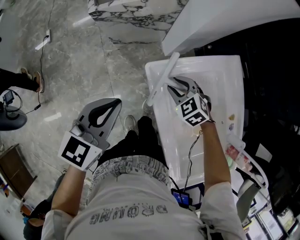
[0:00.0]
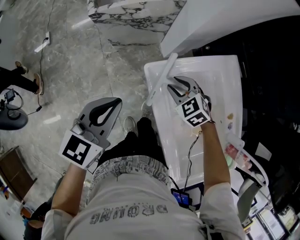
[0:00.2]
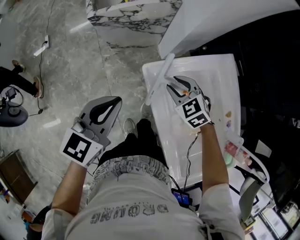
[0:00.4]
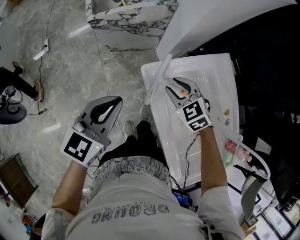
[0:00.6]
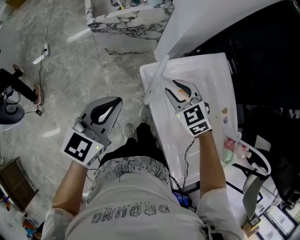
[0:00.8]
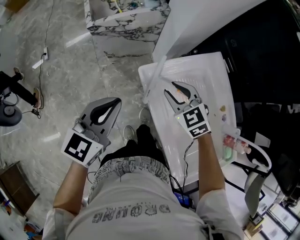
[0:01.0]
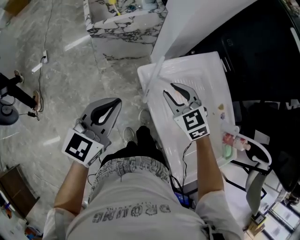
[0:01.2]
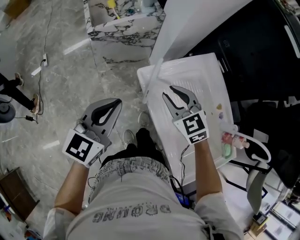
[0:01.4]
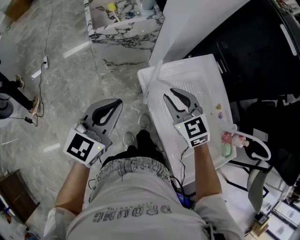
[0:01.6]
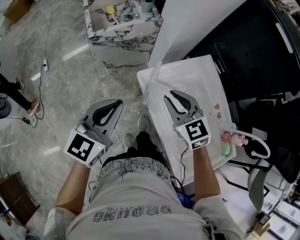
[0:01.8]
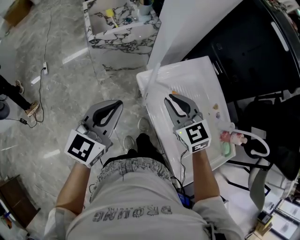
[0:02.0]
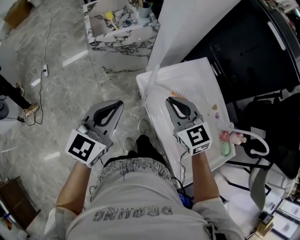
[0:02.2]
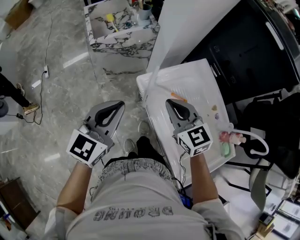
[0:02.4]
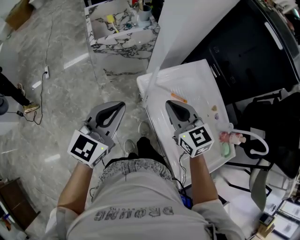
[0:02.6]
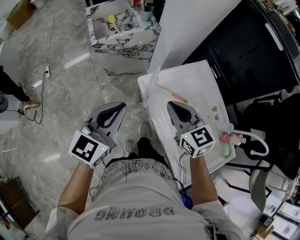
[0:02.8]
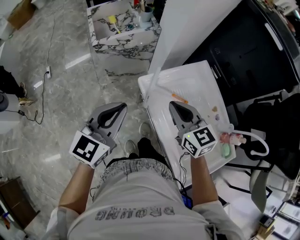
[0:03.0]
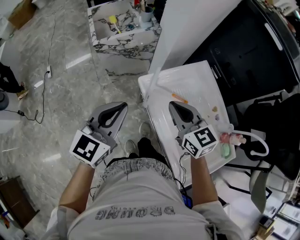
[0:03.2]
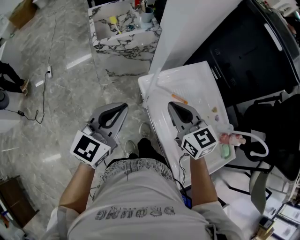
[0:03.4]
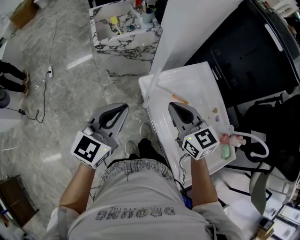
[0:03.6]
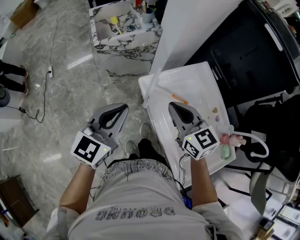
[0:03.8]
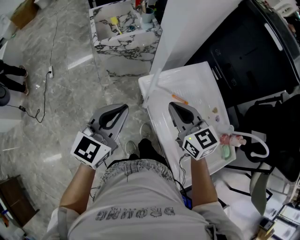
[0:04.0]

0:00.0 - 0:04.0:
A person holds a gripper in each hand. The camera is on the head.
0:00.0 - 0:01.4: The left gripper travels upward by approximately 5 cm, while the right gripper goes about 15 cm upward, and changes its angle by approximately 20 degrees.
0:01.4 - 0:02.6: The right gripper travels upward and backward by roughly 10 cm, and closes.
0:02.6 - 0:04.0: The grippers move only a little.

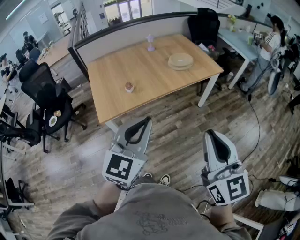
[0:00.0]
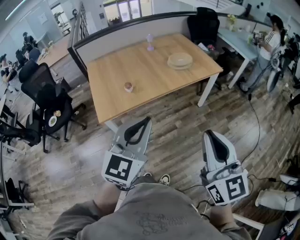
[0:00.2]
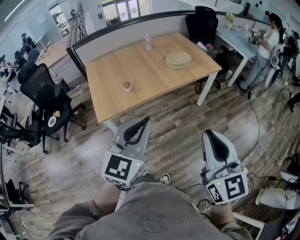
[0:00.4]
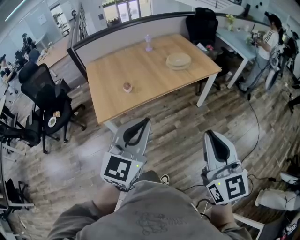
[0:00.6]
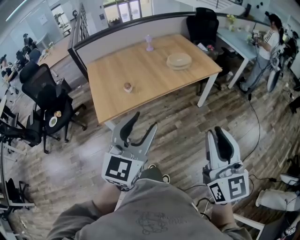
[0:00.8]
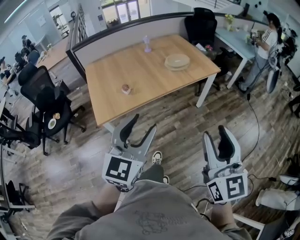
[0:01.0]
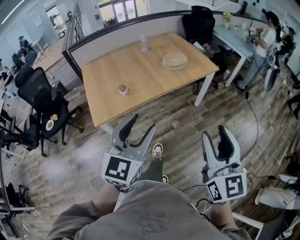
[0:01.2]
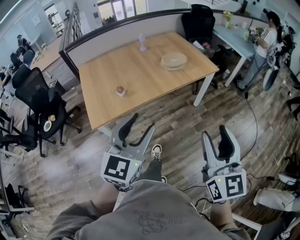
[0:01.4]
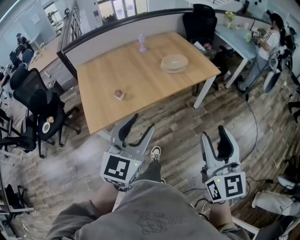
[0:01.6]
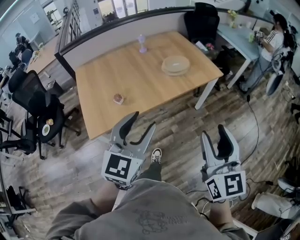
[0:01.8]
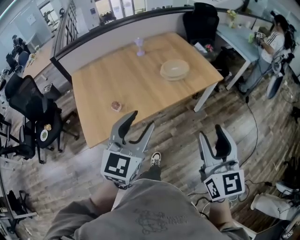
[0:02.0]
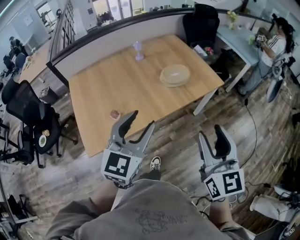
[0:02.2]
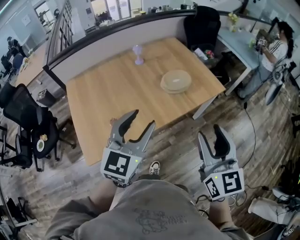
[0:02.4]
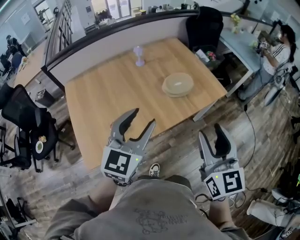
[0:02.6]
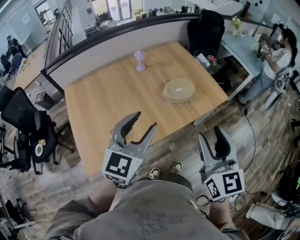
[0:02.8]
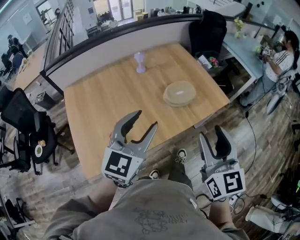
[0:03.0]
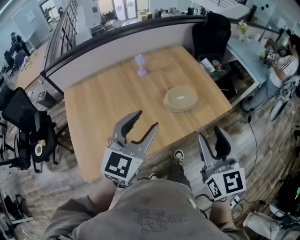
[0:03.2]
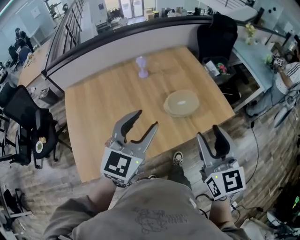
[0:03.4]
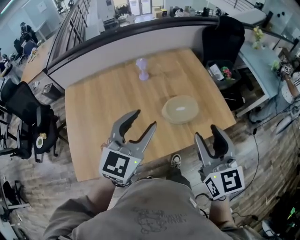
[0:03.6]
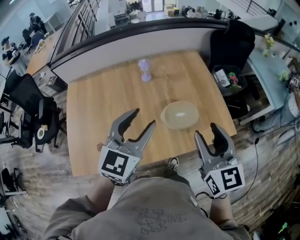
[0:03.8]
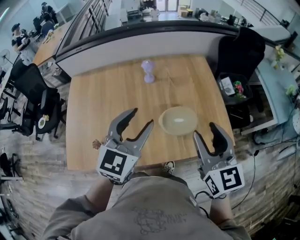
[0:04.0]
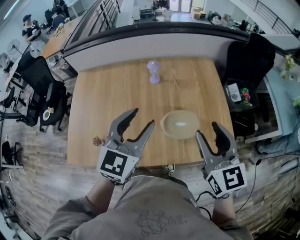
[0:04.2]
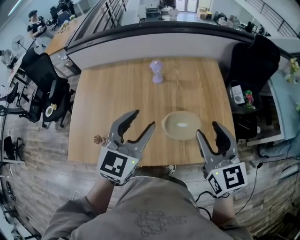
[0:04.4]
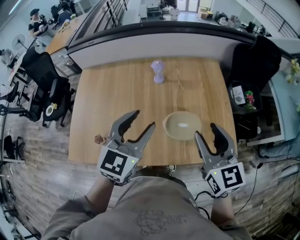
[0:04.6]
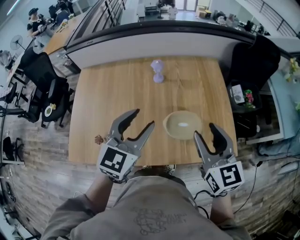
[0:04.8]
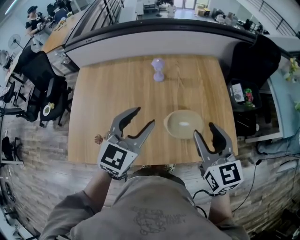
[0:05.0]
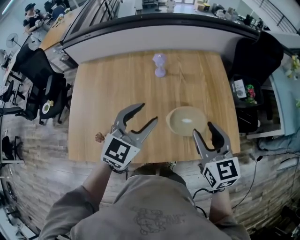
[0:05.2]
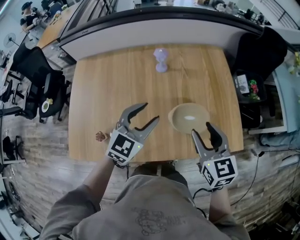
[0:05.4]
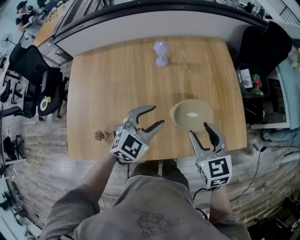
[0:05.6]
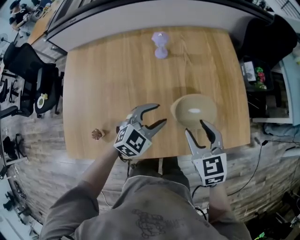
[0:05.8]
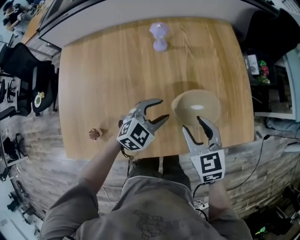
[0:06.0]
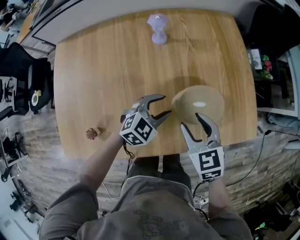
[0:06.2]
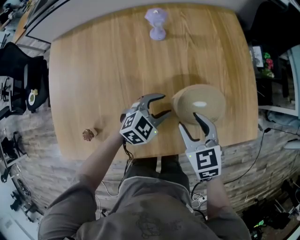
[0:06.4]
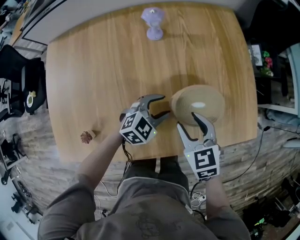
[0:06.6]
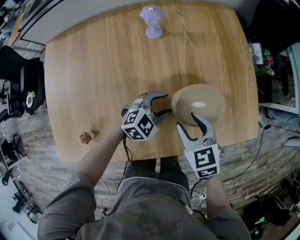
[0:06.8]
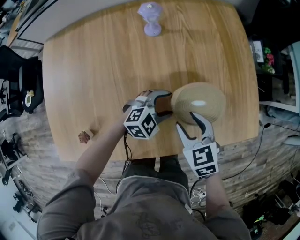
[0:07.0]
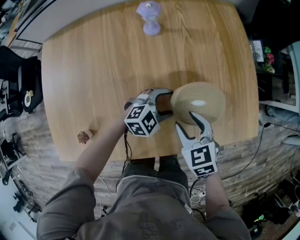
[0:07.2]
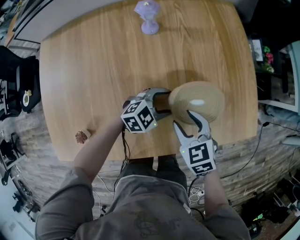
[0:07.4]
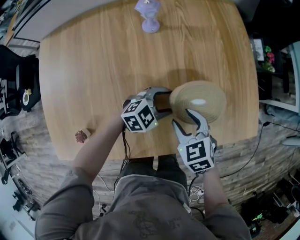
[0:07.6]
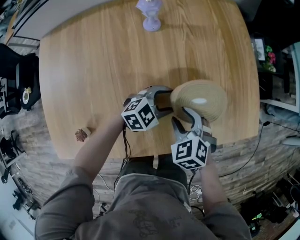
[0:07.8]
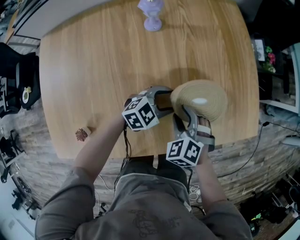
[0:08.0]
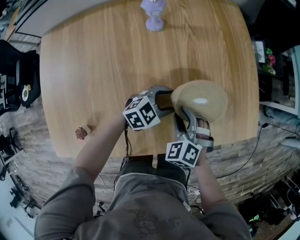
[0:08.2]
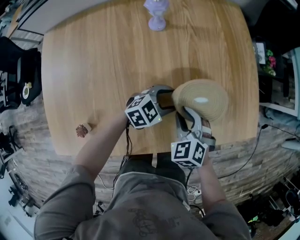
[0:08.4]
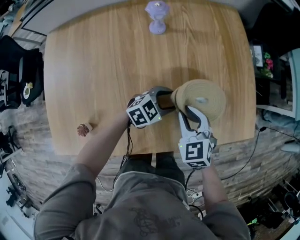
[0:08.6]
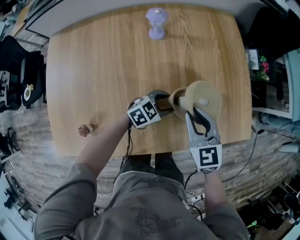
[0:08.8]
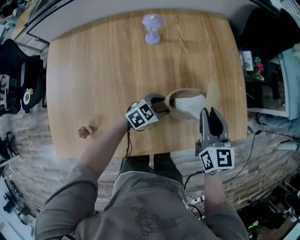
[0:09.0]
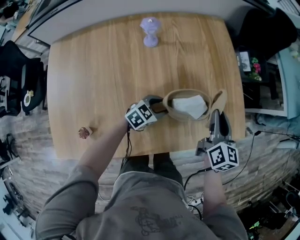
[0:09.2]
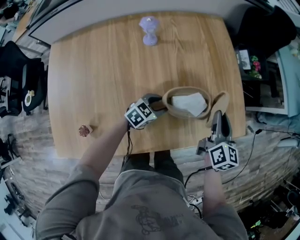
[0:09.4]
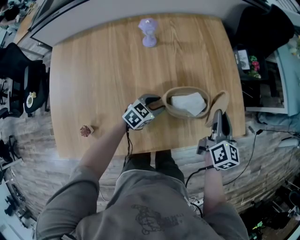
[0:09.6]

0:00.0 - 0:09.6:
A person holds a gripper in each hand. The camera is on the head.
0:00.0 - 0:01.6: Both grippers travel together forward, about 10 cm. The right gripper opens; the left gripper opens up.
0:01.6 - 0:03.2: The grippers both shift forward by some 35 cm.
0:03.2 - 0:04.8: The right gripper shifts by about 25 cm, and changes its angle by approximately 30 degrees, while the left gripper ends up roughly 20 cm from where it was, and changes its angle by approximately 20 degrees.
0:04.8 - 0:06.4: The two grippers go roughly 30 cm downward. The right gripper turns by about 30 degrees; the left gripper changes its angle by some 40 degrees.
0:06.4 - 0:08.0: The right gripper travels downward by approximately 10 cm, and changes its angle by some 30 degrees. The left gripper ends up about 5 cm from where it was.
0:08.0 - 0:09.6: The right gripper moves to the right, upward and forward, approximately 25 cm, rotates around the line of its fingers by roughly 70 degrees, clockwise from behind, and closes.

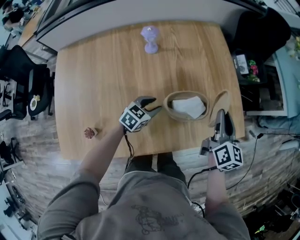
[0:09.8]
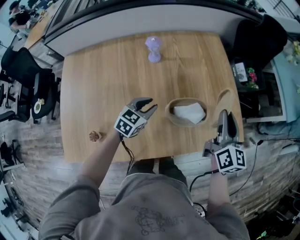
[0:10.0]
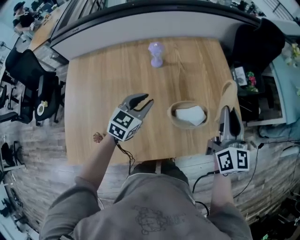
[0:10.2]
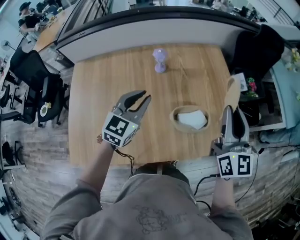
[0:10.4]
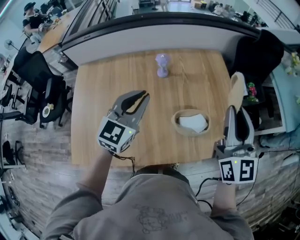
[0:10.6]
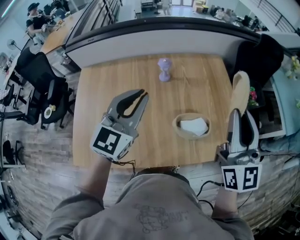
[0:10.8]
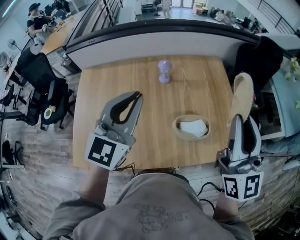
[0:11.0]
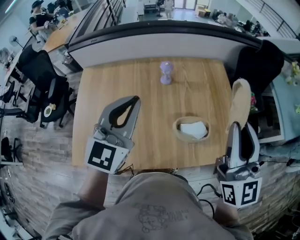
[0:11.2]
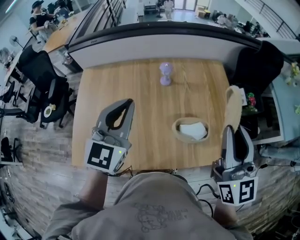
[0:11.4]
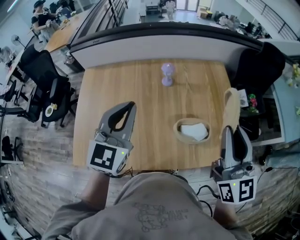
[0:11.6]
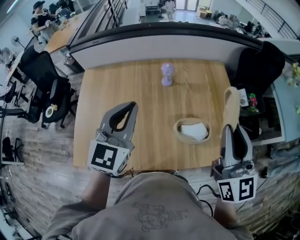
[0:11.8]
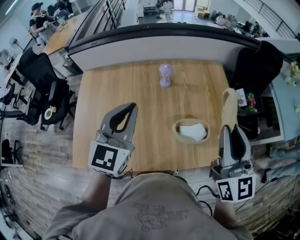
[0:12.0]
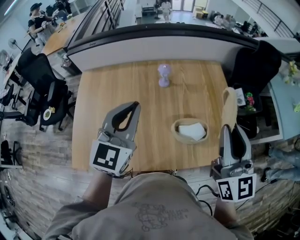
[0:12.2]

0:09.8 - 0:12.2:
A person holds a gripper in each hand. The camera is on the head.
0:09.8 - 0:11.0: Both grippers travel together upward, some 35 cm. The left gripper tilts its fingers approximately 40 degrees upward, and closes, while the right gripper changes its angle by some 40 degrees.
0:11.0 - 0:12.2: The grippers make only small movements.

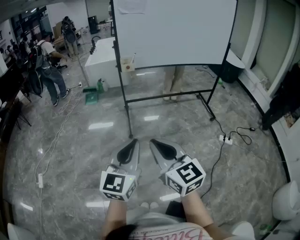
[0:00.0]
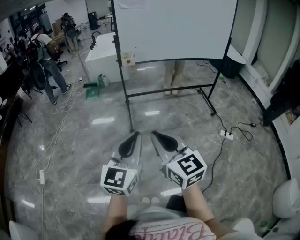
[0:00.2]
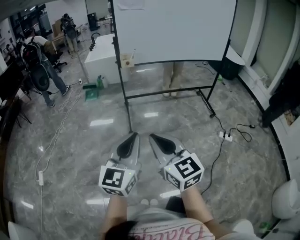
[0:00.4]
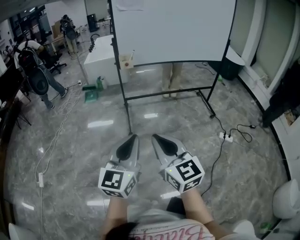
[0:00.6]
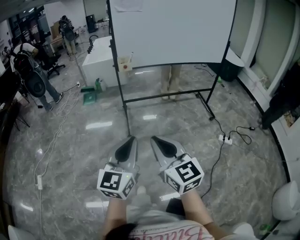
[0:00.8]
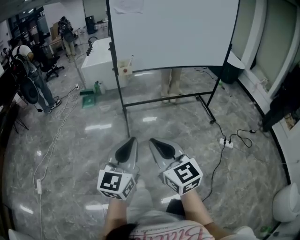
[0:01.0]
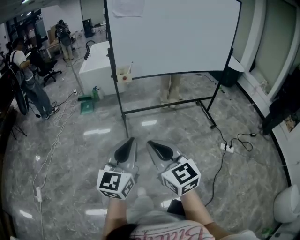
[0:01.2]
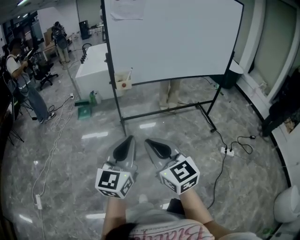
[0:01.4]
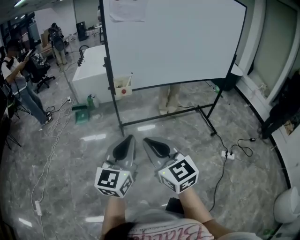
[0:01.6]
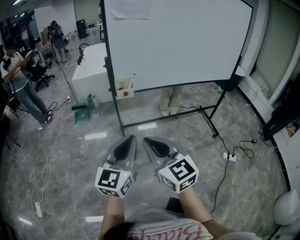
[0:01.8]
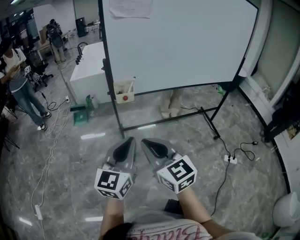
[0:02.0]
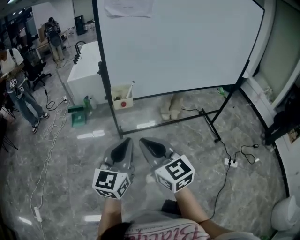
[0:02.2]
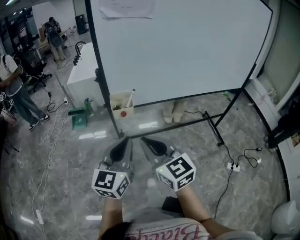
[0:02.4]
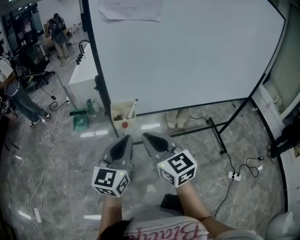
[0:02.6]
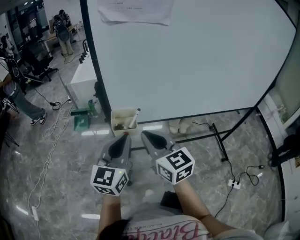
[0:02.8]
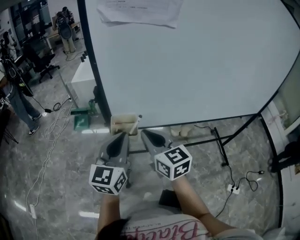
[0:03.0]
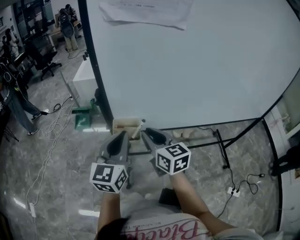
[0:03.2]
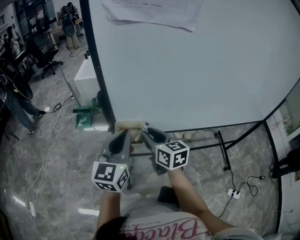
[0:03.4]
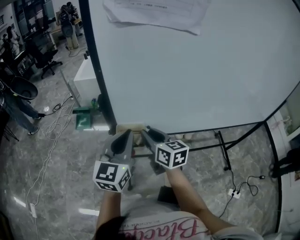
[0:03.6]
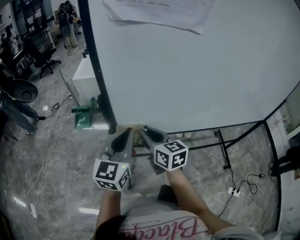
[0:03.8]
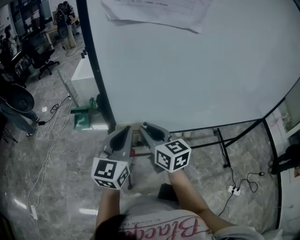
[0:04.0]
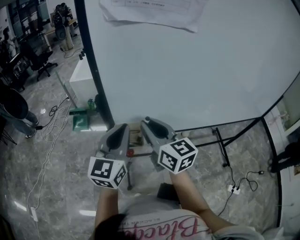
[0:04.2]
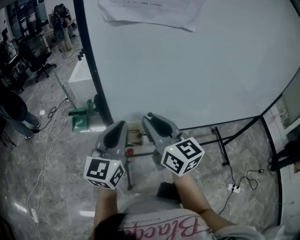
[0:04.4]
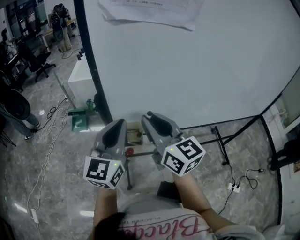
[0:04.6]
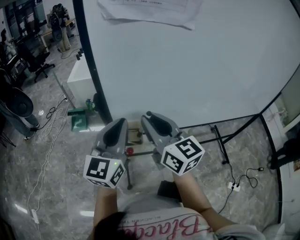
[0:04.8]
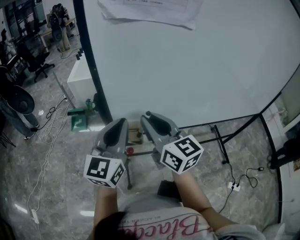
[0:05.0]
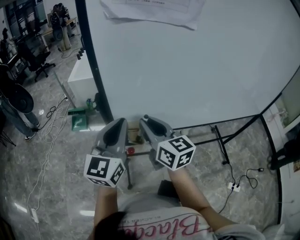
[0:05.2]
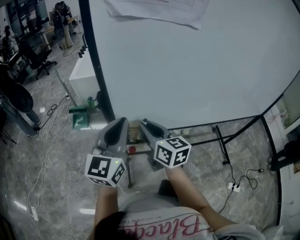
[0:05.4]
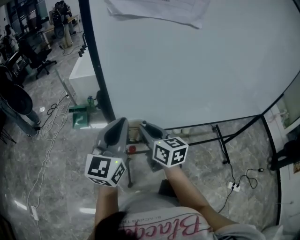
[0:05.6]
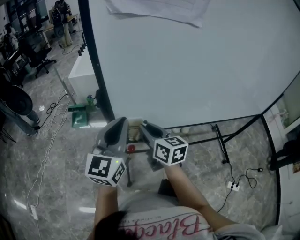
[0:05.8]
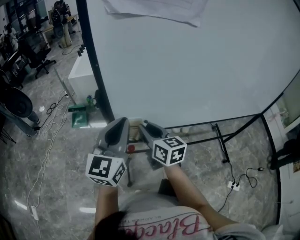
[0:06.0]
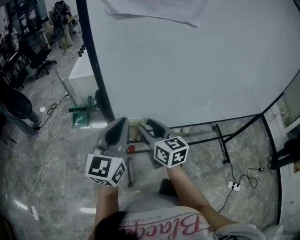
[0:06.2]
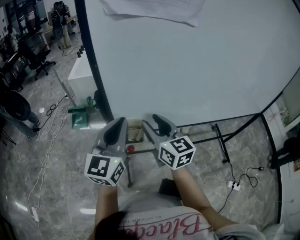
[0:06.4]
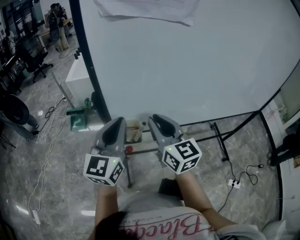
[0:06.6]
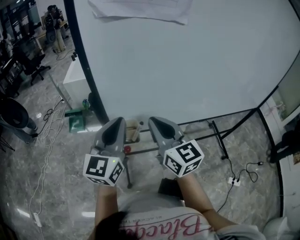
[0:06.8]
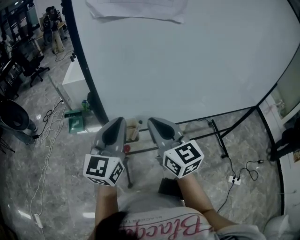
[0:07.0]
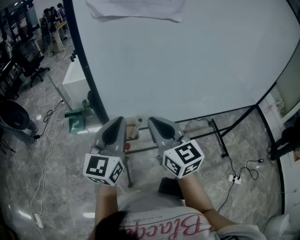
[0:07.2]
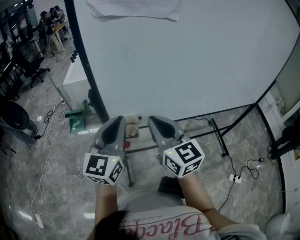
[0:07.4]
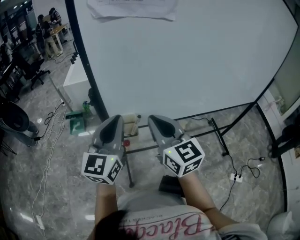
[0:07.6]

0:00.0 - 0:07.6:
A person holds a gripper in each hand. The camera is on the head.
0:00.0 - 0:01.6: Both grippers move forward, about 25 cm.
0:01.6 - 0:03.0: Both grippers move forward, approximately 35 cm.
0:03.0 - 0:04.6: The left gripper shifts about 5 cm forward. Meanwhile the right gripper heads upward, covering some 10 cm.
0:04.6 - 0:06.0: The right gripper travels downward by roughly 15 cm.
0:06.0 - 0:07.6: The right gripper is displaced upward and backward by approximately 15 cm, changes its angle by some 20 degrees, and opens, then closes again.
